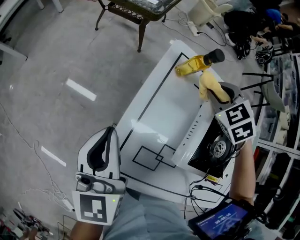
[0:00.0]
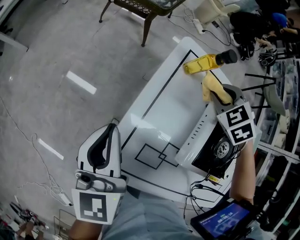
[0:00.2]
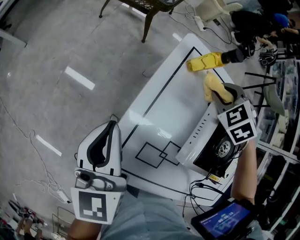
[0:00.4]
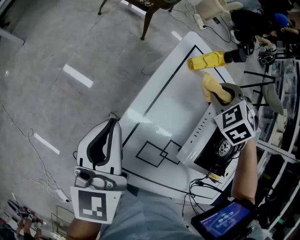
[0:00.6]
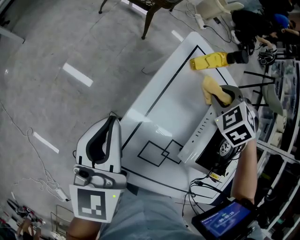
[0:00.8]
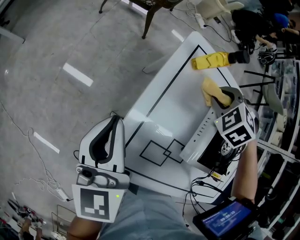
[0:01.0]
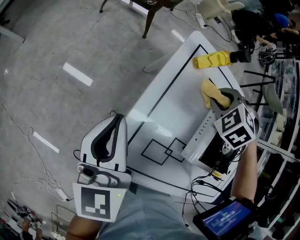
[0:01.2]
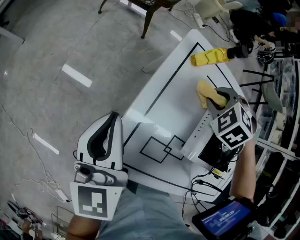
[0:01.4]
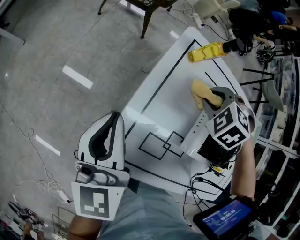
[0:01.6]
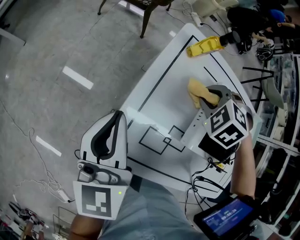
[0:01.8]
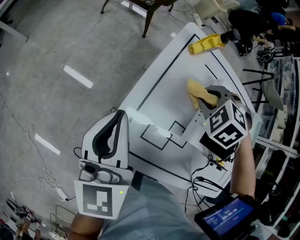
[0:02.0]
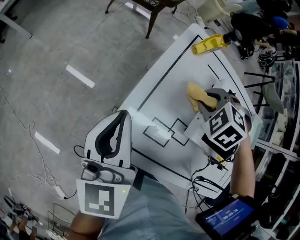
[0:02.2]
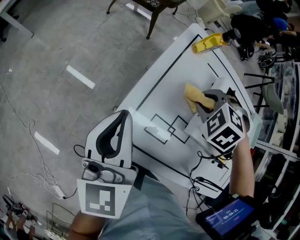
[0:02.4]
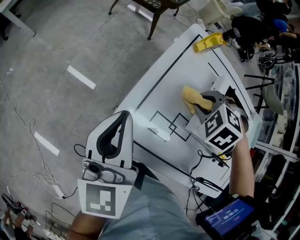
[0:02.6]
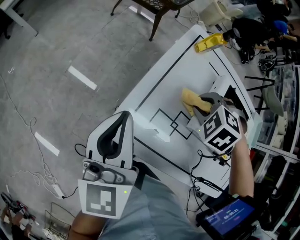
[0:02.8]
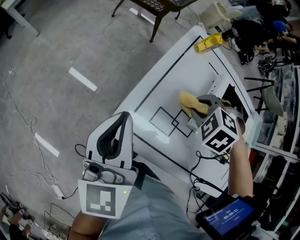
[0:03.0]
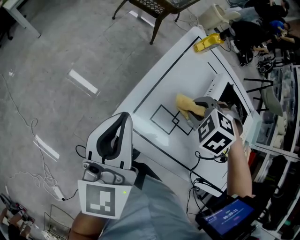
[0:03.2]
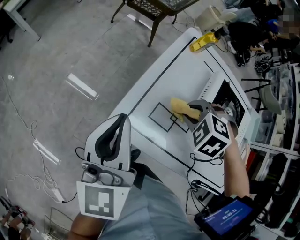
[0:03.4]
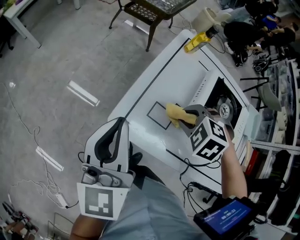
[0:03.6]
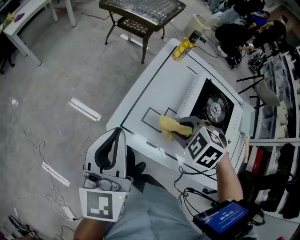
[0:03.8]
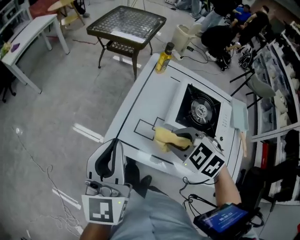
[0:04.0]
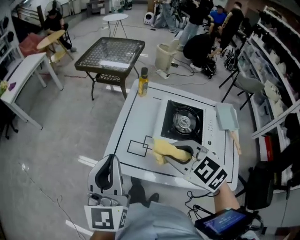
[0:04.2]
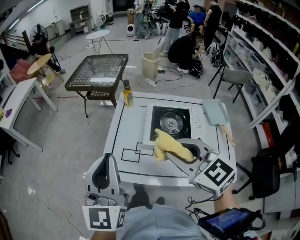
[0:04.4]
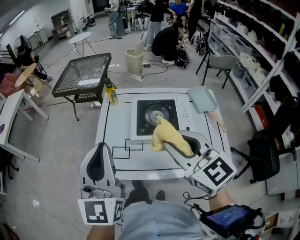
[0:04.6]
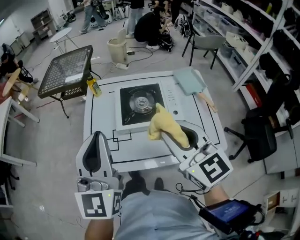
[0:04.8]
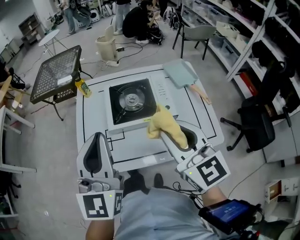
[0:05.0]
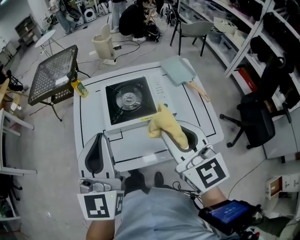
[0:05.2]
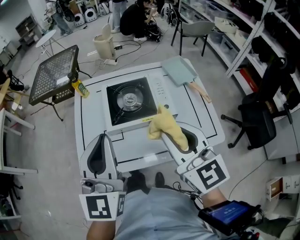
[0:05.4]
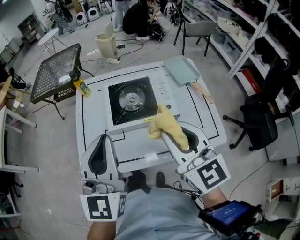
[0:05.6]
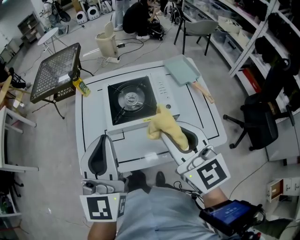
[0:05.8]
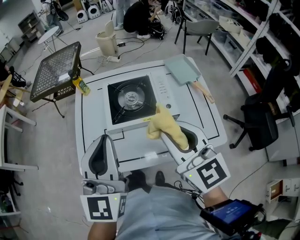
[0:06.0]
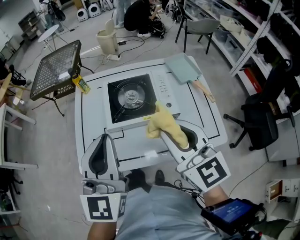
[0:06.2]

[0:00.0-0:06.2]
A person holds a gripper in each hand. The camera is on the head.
0.0 to 1.6 s: The right gripper shifts some 10 cm backward, and turns by roughly 20 degrees.
1.6 to 3.2 s: The left gripper ends up some 15 cm from where it was; the right gripper ends up approximately 15 cm from where it was.
3.2 to 4.6 s: The grippers both shift upward by about 25 cm. The right gripper angles its fingers upward, by approximately 70 degrees, while the left gripper rotates about 40 degrees.
4.6 to 6.2 s: Both grippers travel together to the right and downward, roughly 10 cm.

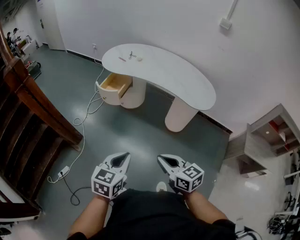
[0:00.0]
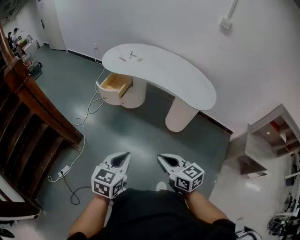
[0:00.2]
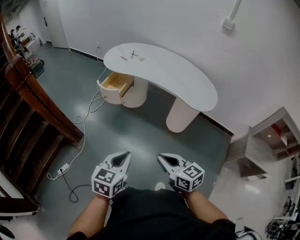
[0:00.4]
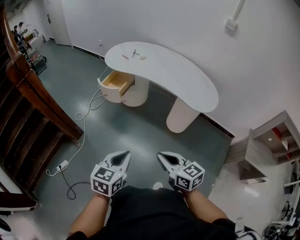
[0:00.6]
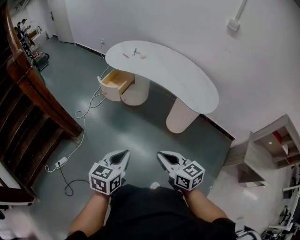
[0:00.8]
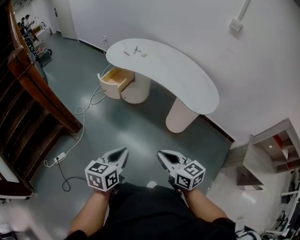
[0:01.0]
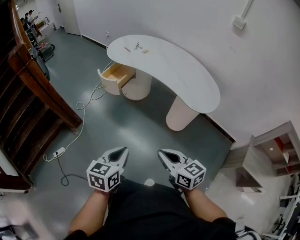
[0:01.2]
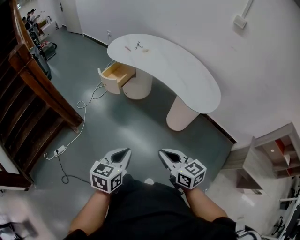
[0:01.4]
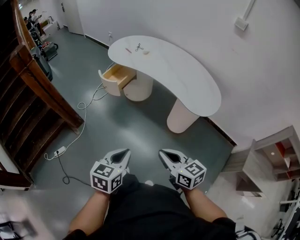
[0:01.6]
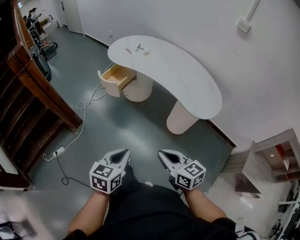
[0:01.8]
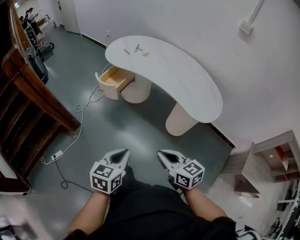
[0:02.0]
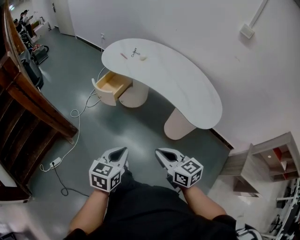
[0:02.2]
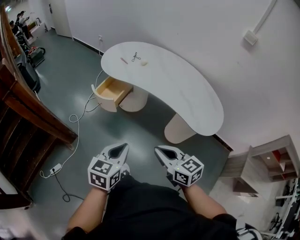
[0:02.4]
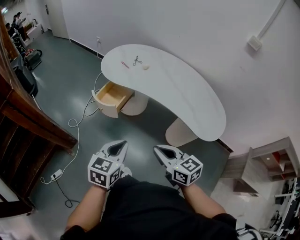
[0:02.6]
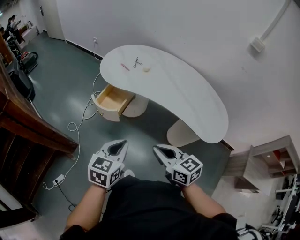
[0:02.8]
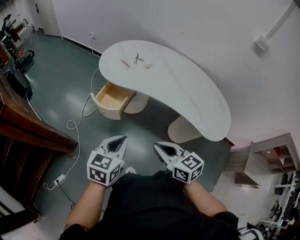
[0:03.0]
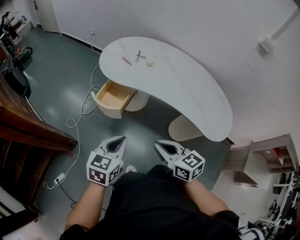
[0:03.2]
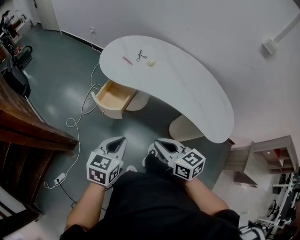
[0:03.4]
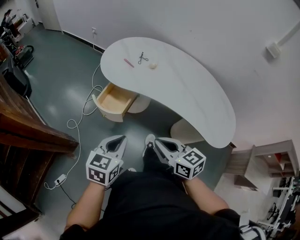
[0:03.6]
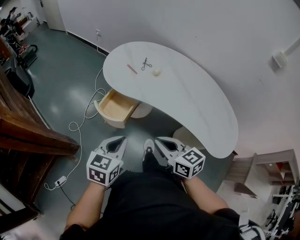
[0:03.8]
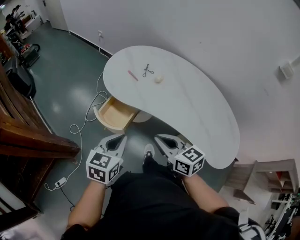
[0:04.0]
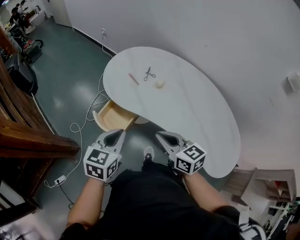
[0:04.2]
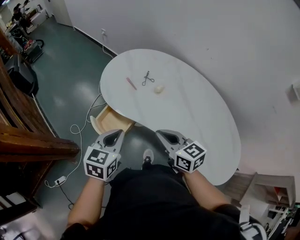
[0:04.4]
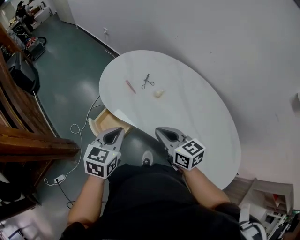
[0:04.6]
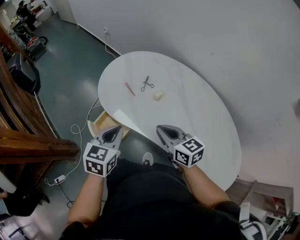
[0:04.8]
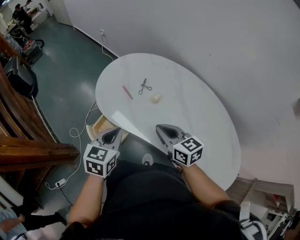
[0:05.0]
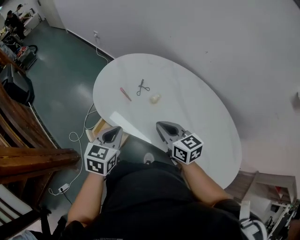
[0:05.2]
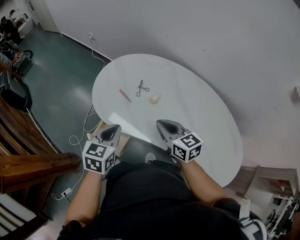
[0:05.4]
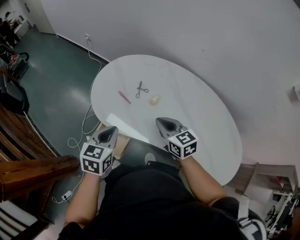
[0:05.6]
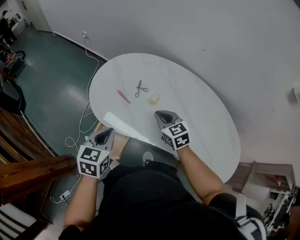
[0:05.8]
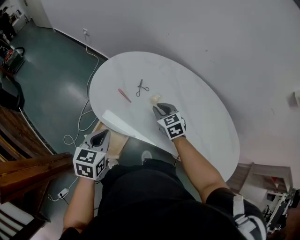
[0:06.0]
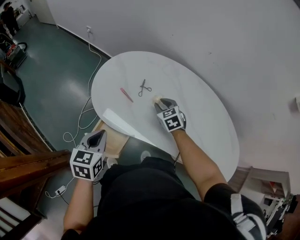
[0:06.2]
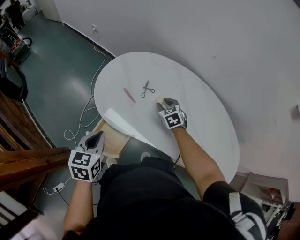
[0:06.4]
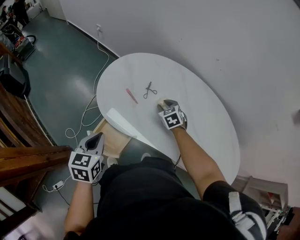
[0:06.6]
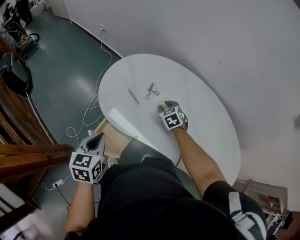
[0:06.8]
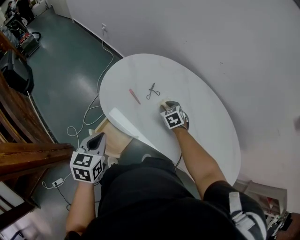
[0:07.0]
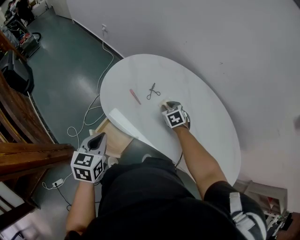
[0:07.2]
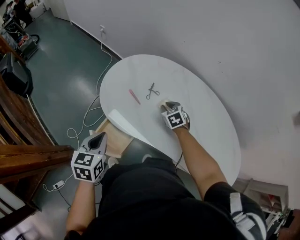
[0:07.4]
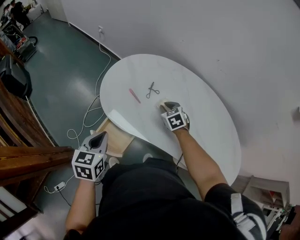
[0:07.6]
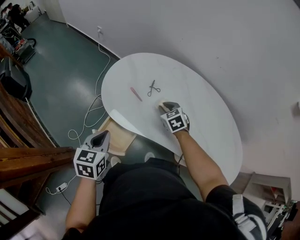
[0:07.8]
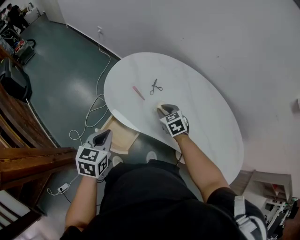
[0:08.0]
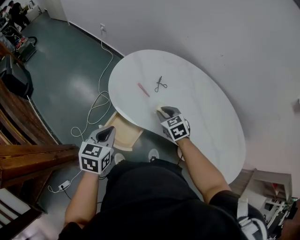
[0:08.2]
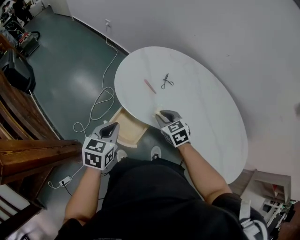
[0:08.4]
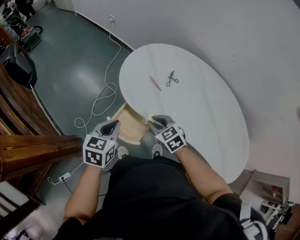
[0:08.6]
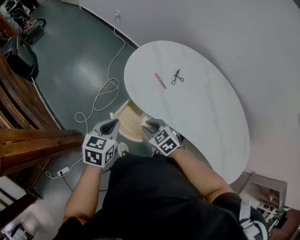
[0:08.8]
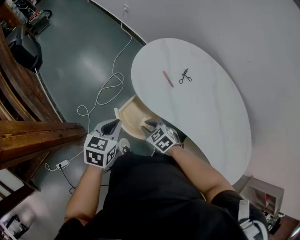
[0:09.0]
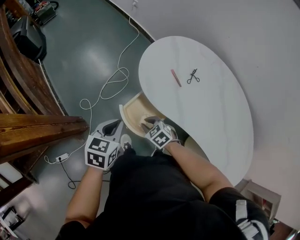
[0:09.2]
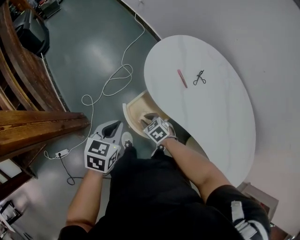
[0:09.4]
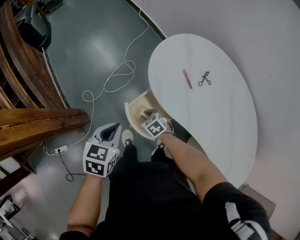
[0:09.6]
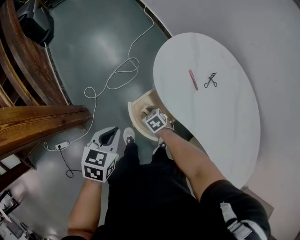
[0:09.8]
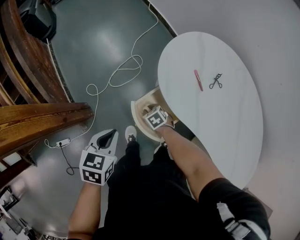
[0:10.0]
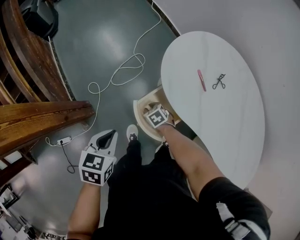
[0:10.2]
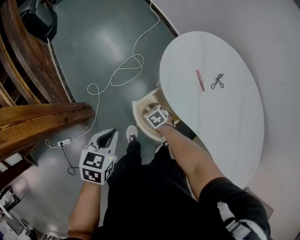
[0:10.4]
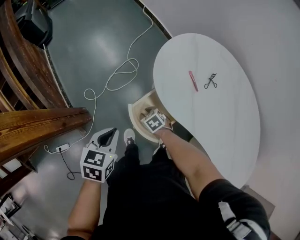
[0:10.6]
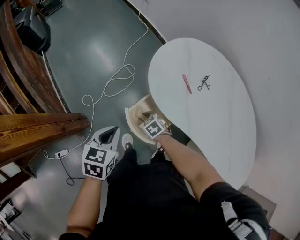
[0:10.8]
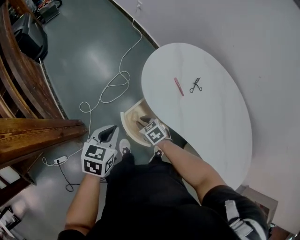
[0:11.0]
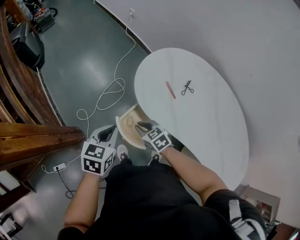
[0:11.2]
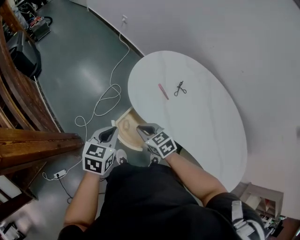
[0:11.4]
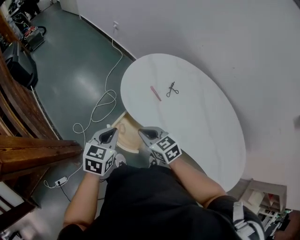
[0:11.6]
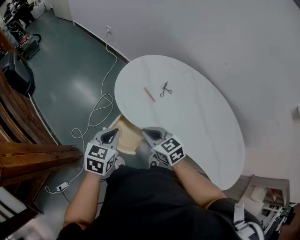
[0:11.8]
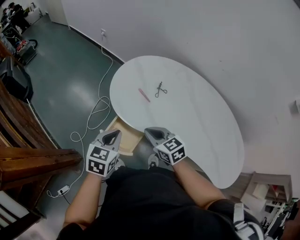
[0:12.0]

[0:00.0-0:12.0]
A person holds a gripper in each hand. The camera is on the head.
0.0 to 1.6 s: Both grippers travel together to the right, roughly 15 cm.
1.6 to 3.0 s: The right gripper goes roughly 35 cm forward and to the left. Meanwhile the left gripper heads forward, covering roughly 35 cm.
3.0 to 4.4 s: The two grippers go roughly 30 cm forward.
4.4 to 6.0 s: The left gripper travels forward and to the left by roughly 15 cm, while the right gripper moves forward and downward, roughly 25 cm, and turns by approximately 30 degrees.
7.6 to 9.0 s: The right gripper moves to the left and backward, roughly 30 cm, and rotates approximately 30 degrees, while the left gripper heads to the left, covering approximately 10 cm.
9.0 to 10.4 s: The right gripper heads downward and forward, covering approximately 20 cm. The left gripper travels to the left and downward by roughly 10 cm.
10.4 to 12.0 s: The right gripper heads upward and to the right, covering some 35 cm, tips its fingers upward by roughly 30 degrees, and closes its fingers. The left gripper travels to the right and upward by some 20 cm, and rotates approximately 30 degrees.

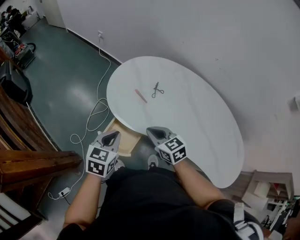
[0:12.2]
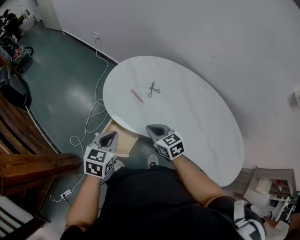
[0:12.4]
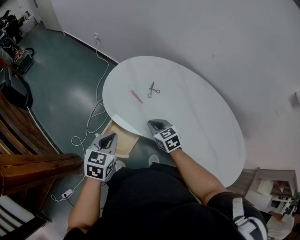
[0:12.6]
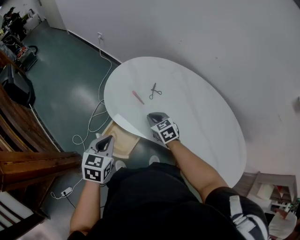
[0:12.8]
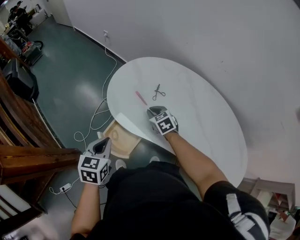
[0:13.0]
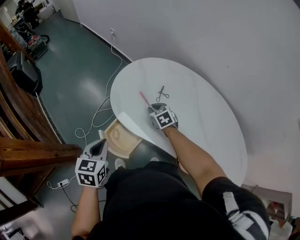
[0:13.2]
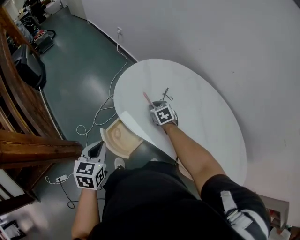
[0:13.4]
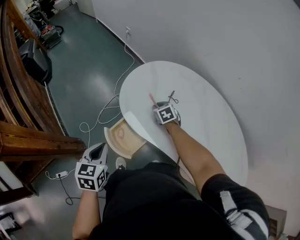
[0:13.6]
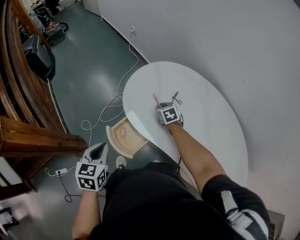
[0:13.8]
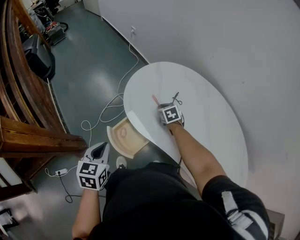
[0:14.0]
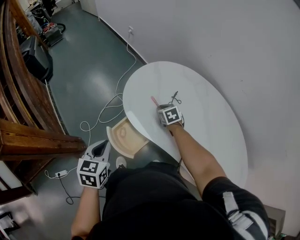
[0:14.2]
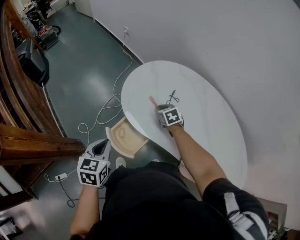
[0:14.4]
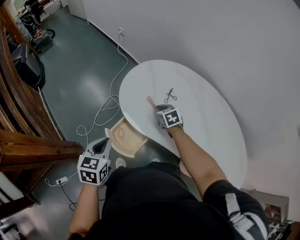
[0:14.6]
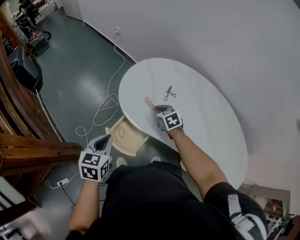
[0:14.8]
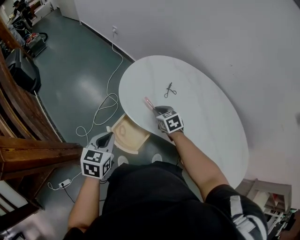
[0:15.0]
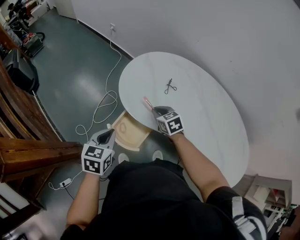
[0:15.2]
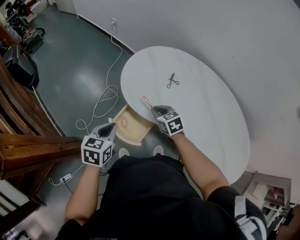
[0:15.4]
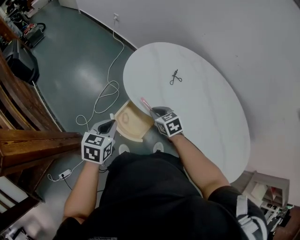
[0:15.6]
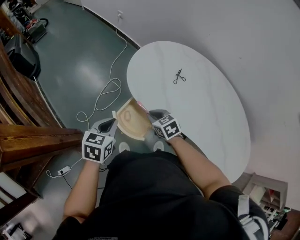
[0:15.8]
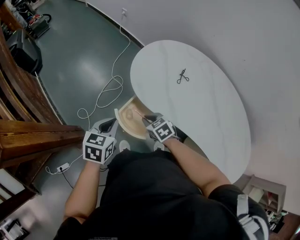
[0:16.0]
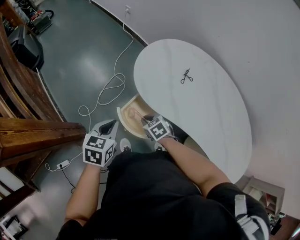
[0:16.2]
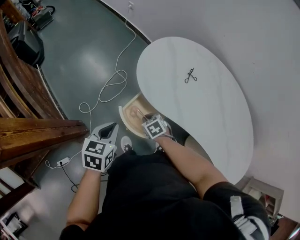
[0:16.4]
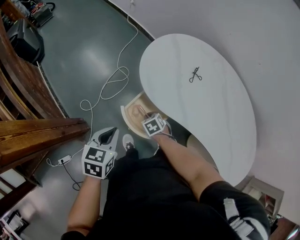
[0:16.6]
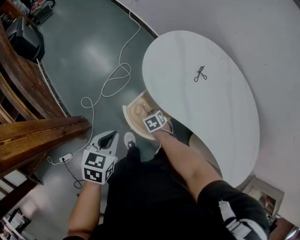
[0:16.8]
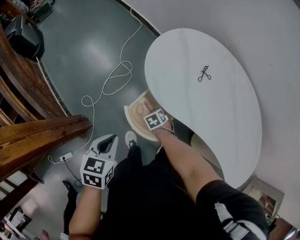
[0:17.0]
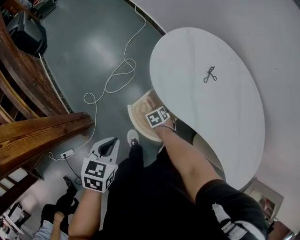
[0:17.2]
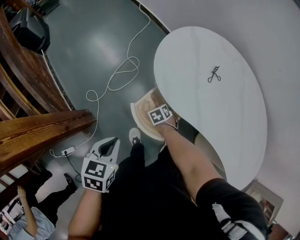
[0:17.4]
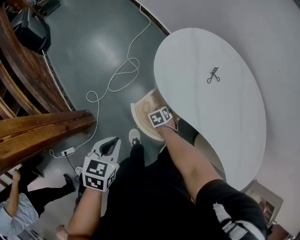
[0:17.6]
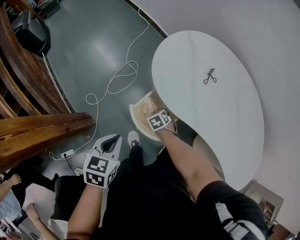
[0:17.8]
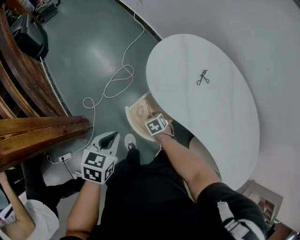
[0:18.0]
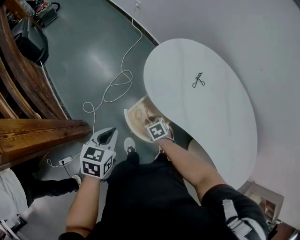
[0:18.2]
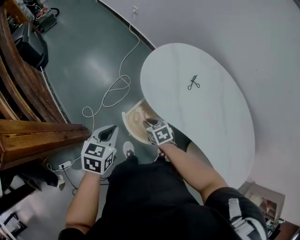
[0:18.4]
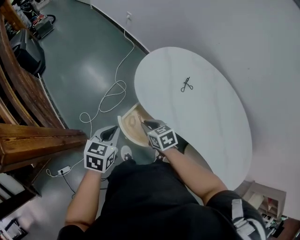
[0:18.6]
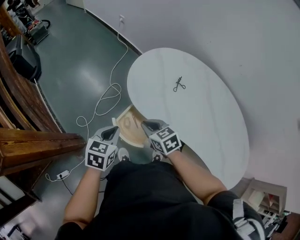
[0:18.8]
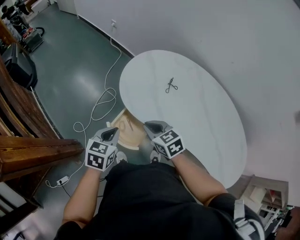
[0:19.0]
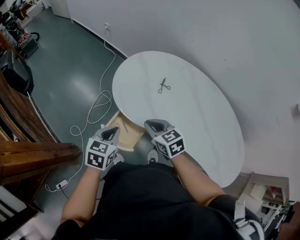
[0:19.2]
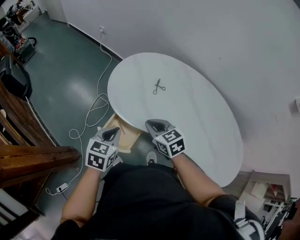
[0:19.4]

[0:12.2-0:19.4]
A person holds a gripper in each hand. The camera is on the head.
12.2 to 13.6 s: The right gripper goes about 25 cm forward and downward, and swivels about 20 degrees. Meanwhile the left gripper moves to the left, approximately 5 cm, and changes its angle by roughly 30 degrees.
13.6 to 15.0 s: The right gripper travels upward and backward by roughly 10 cm.
15.0 to 16.6 s: The right gripper moves downward, to the left and backward, approximately 25 cm, and changes its angle by about 20 degrees. Meanwhile the left gripper moves to the left and downward, roughly 10 cm.
18.0 to 19.4 s: The left gripper is displaced to the right by approximately 15 cm. Meanwhile the right gripper travels upward and to the right by roughly 30 cm, and points its fingers roughly 30 degrees further upward.
